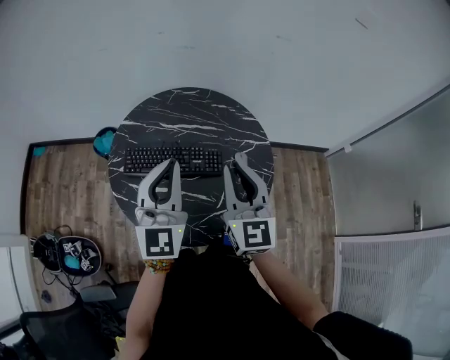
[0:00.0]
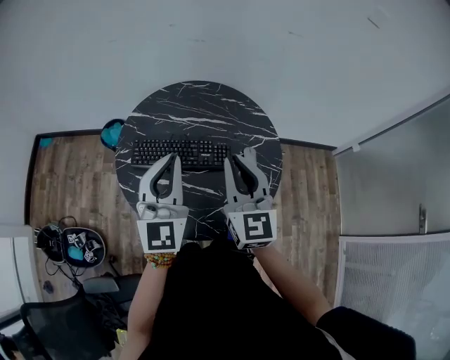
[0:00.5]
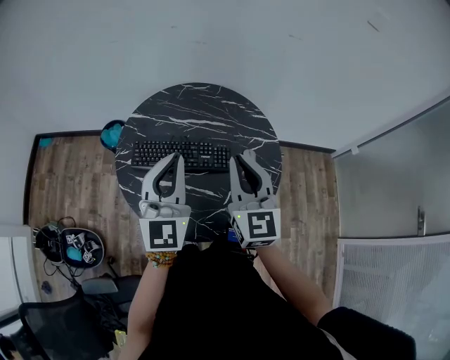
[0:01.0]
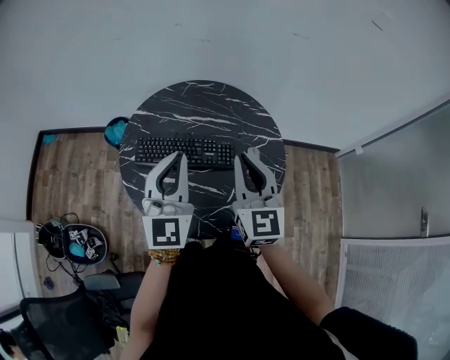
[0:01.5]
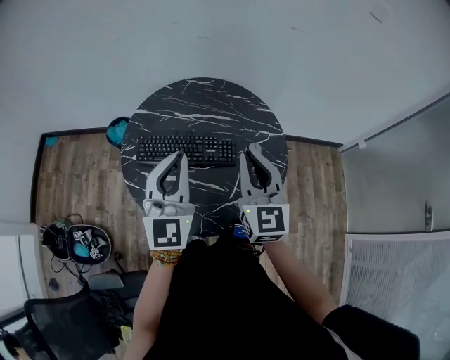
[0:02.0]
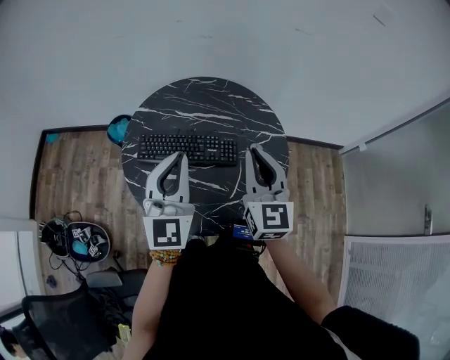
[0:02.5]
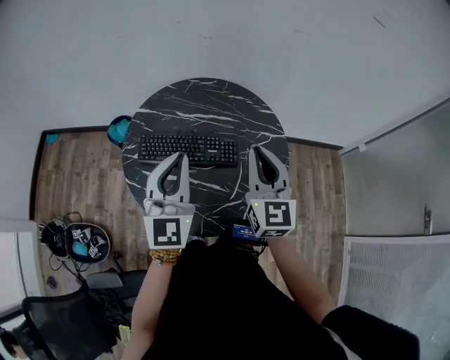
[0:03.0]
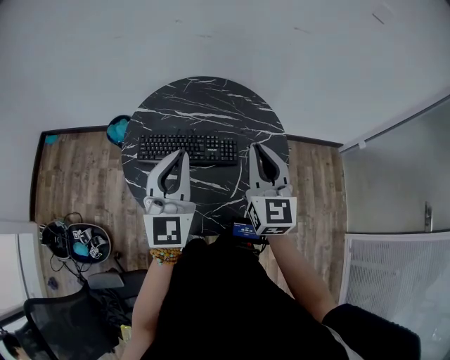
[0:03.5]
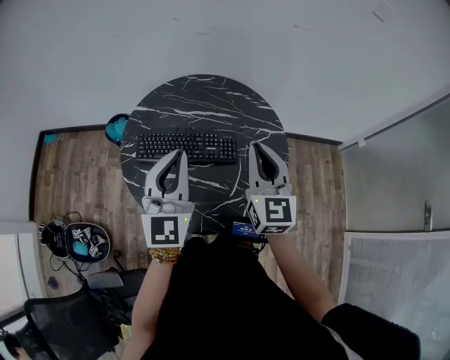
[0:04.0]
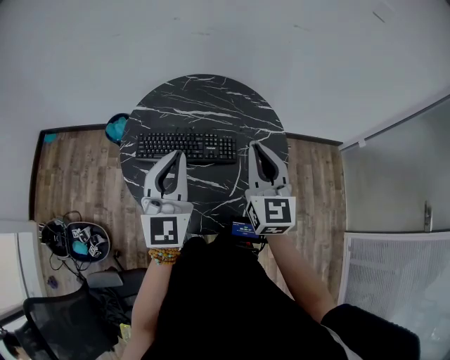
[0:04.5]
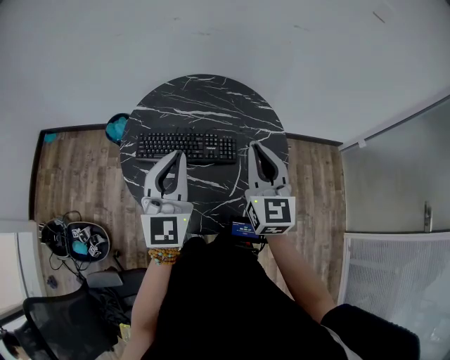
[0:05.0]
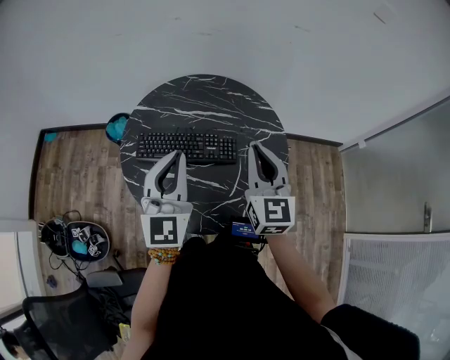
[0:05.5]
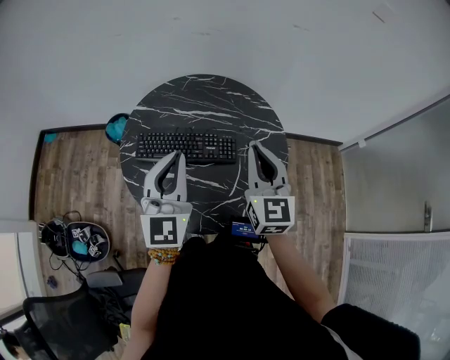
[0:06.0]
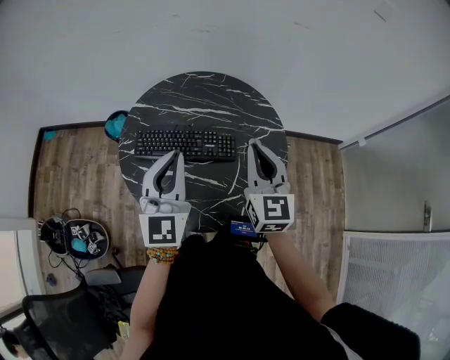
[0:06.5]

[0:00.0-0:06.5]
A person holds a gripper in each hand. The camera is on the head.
0:00.0 to 0:04.5: The grippers make only small movements.
0:04.5 to 0:06.5: Both grippers stay about where they are.

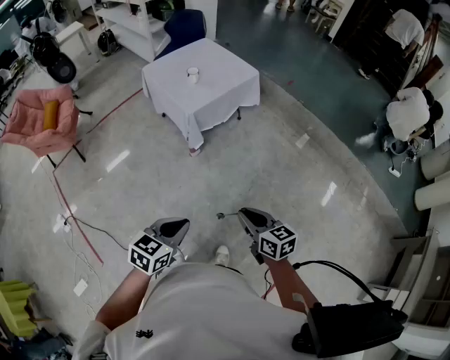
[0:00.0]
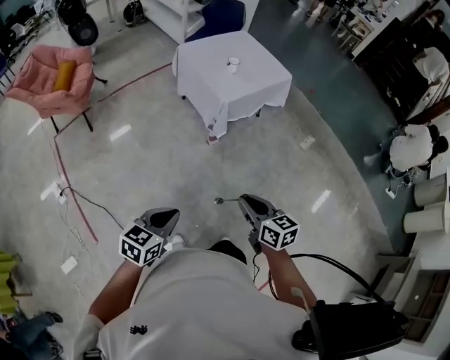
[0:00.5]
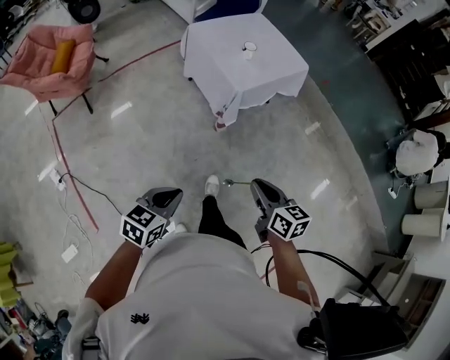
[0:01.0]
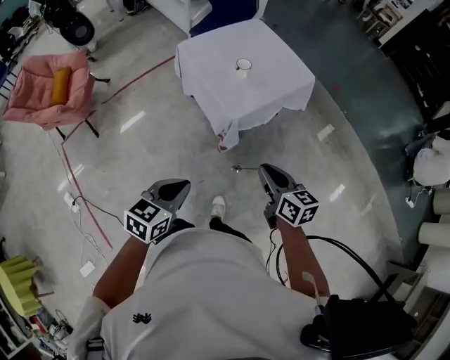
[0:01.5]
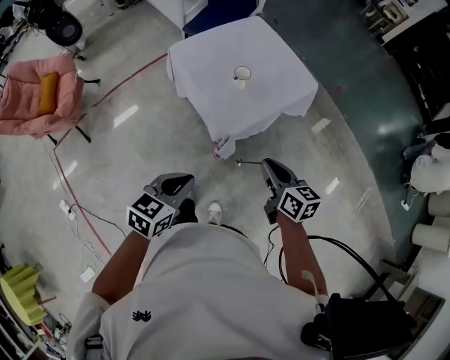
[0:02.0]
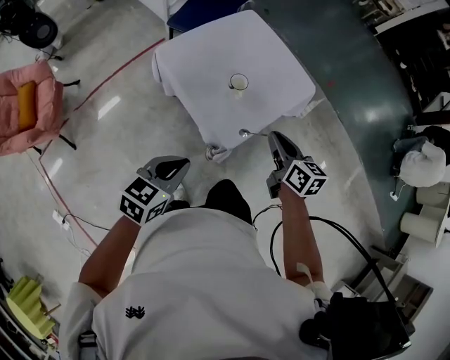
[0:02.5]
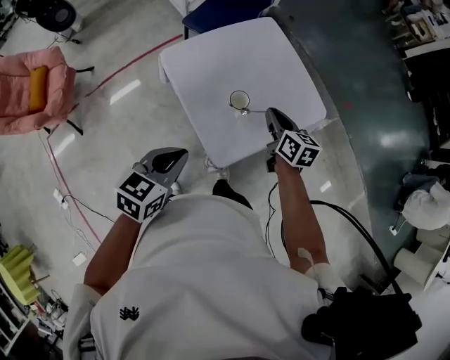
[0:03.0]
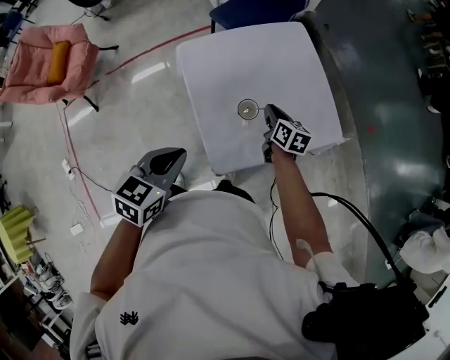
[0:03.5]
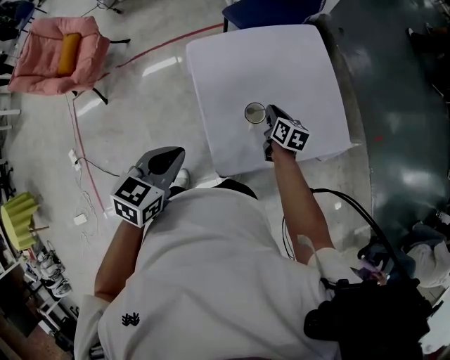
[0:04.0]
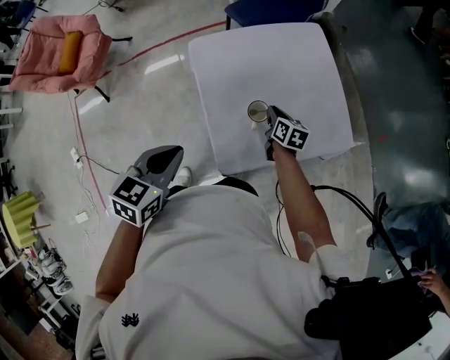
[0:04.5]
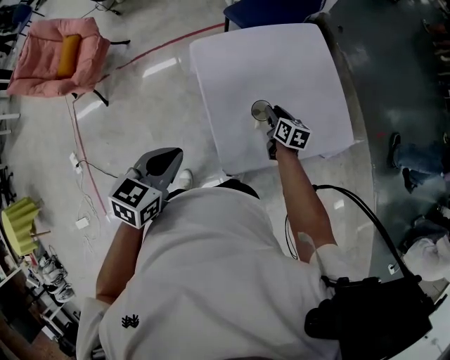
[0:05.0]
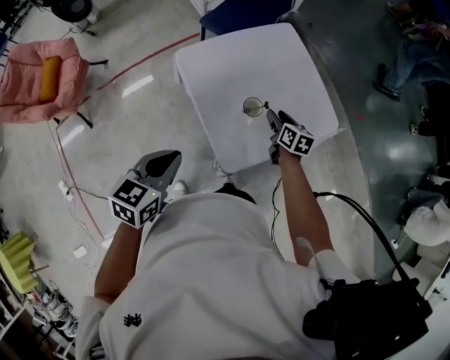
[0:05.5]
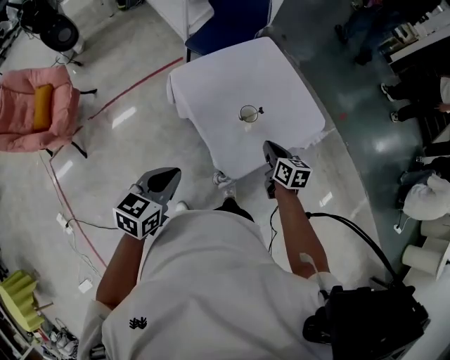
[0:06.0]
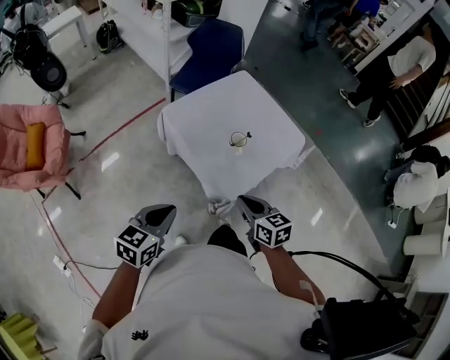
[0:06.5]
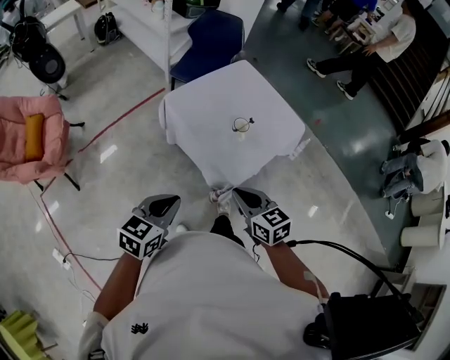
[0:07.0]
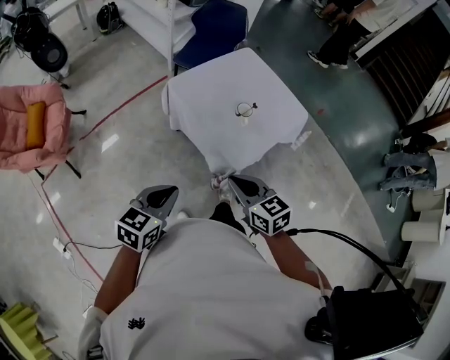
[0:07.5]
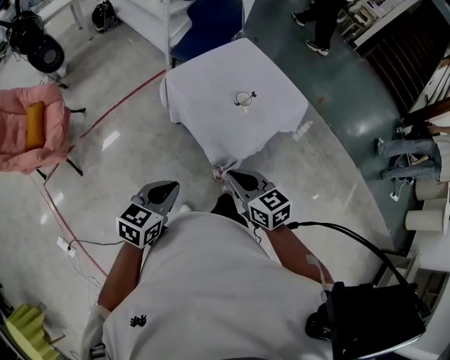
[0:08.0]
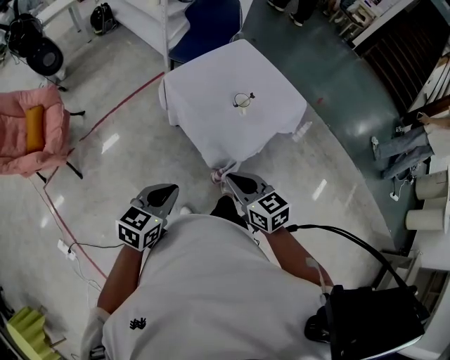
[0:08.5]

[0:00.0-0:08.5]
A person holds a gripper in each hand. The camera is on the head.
0:00.0 to 0:02.0: The pair of grippers is taken forward, about 50 cm.
0:02.0 to 0:04.0: The right gripper ends up about 50 cm from where it was, while the left gripper shifts by some 35 cm, and turns by roughly 30 degrees.
0:04.0 to 0:06.5: The right gripper heads backward, upward and to the left, covering some 40 cm, and opens, then closes once more; the left gripper heads backward and to the left, covering some 25 cm, and changes its angle by some 30 degrees.
0:06.5 to 0:08.5: The left gripper heads backward, covering approximately 10 cm, while the right gripper travels backward and to the left by some 10 cm.

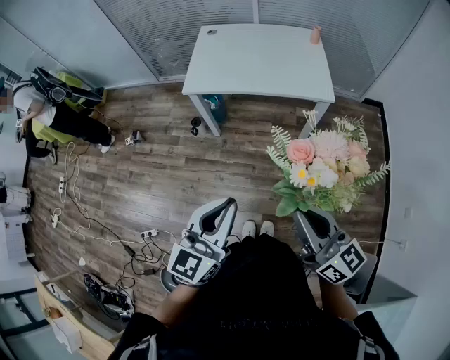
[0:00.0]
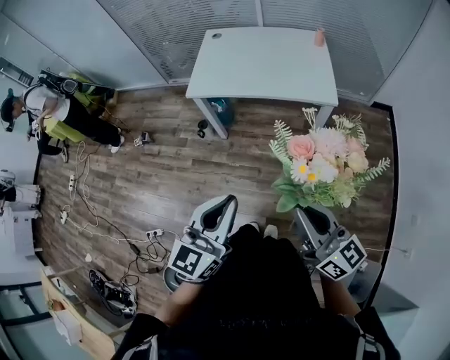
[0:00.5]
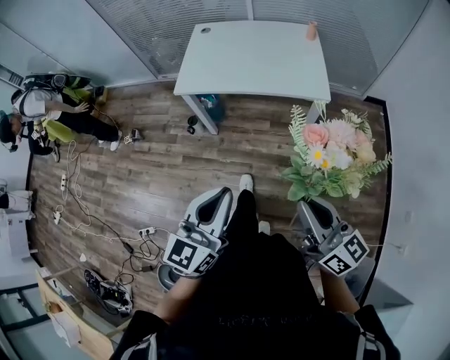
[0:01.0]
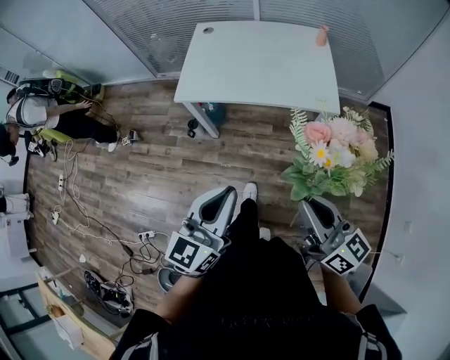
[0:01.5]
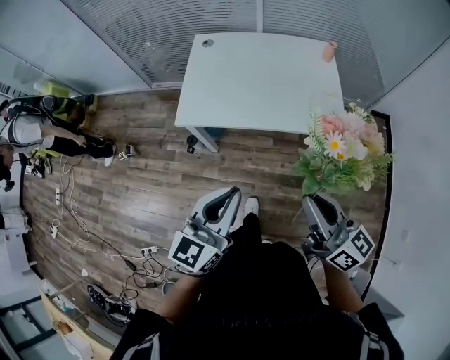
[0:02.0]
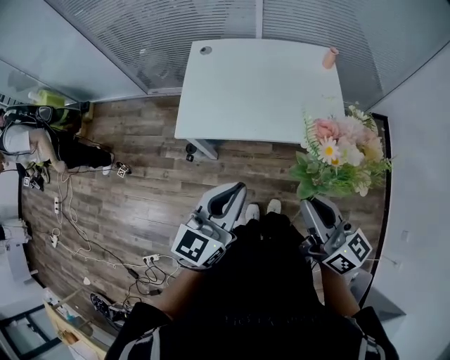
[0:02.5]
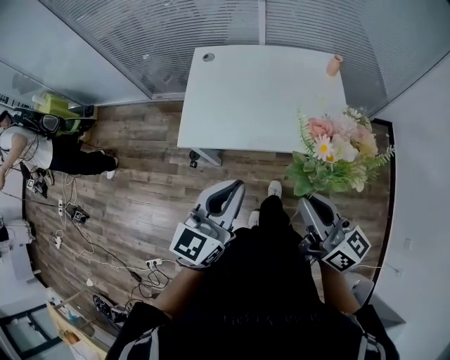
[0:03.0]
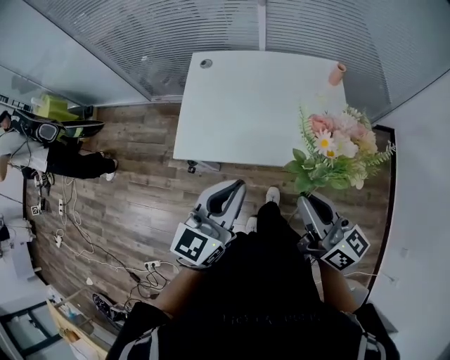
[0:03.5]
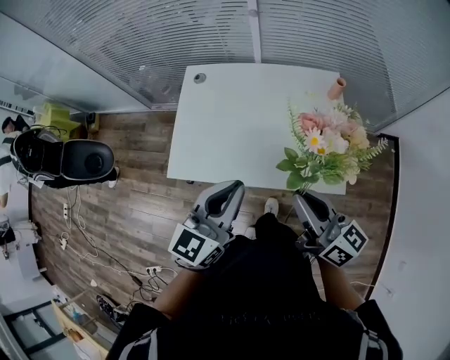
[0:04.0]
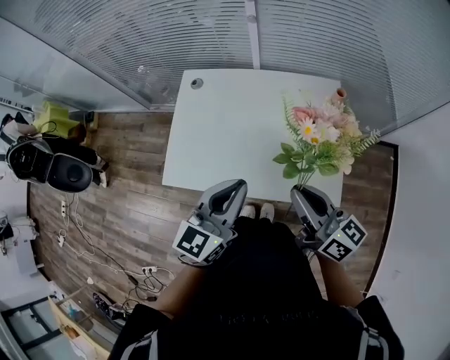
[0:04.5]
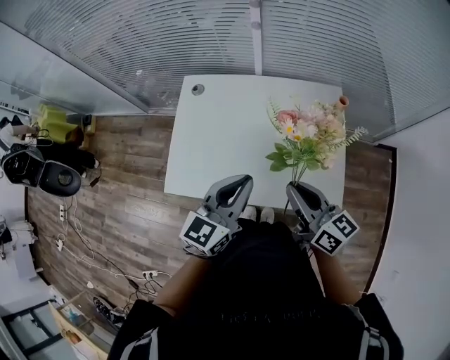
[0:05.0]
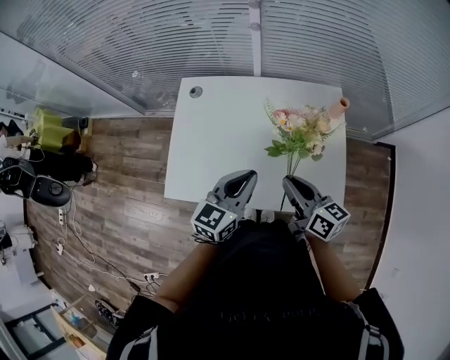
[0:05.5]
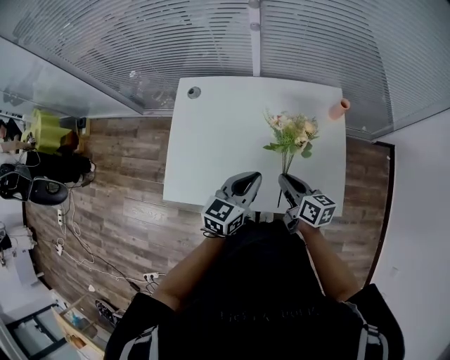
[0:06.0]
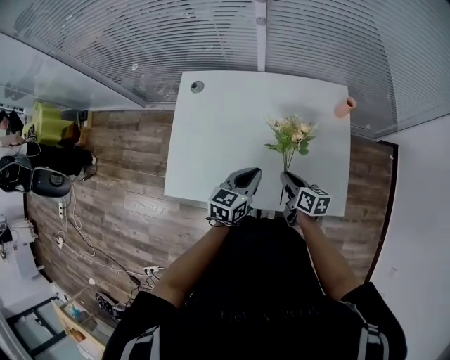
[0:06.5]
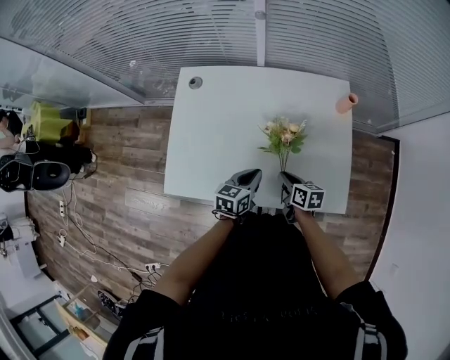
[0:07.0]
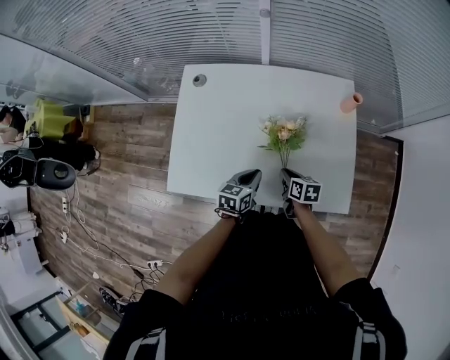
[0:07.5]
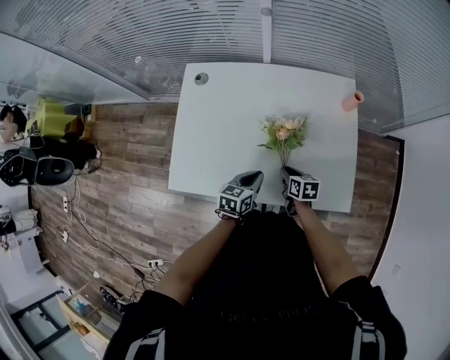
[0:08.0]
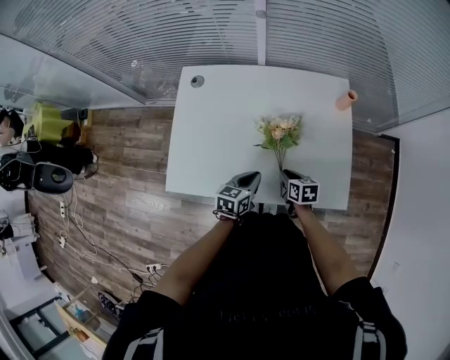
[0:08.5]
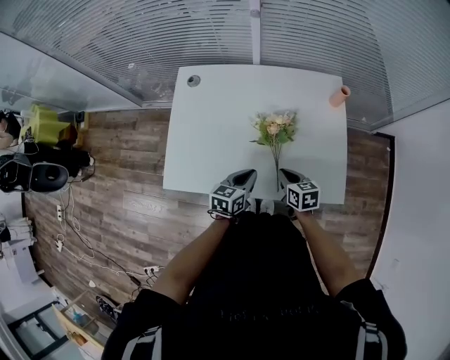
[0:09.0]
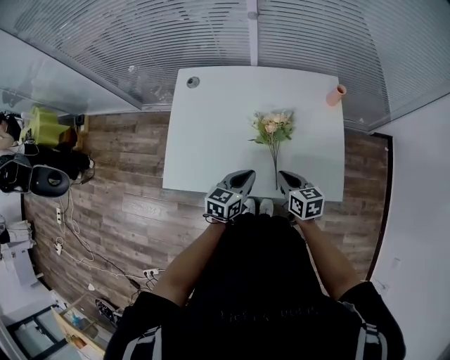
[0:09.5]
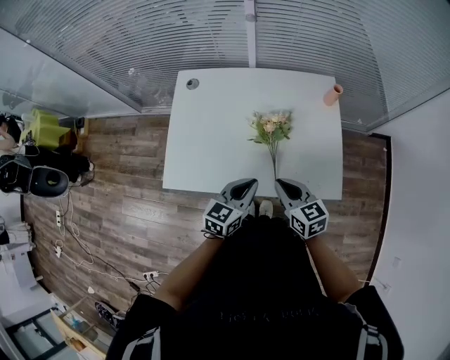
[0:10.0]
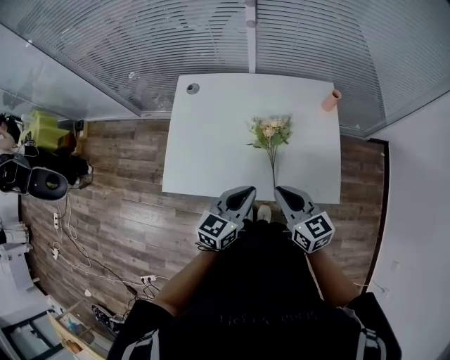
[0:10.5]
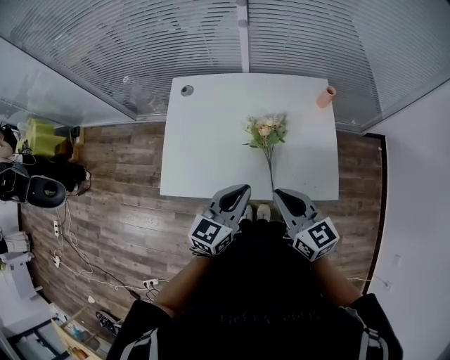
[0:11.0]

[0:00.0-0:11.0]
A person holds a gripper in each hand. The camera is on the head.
0:00.0 to 0:02.0: The two grippers go some 25 cm forward.
0:02.0 to 0:03.5: Both grippers travel together forward, about 15 cm.
0:03.5 to 0:05.5: Both grippers travel together forward and downward, approximately 25 cm.
0:05.5 to 0:07.5: The two grippers go about 20 cm downward. The left gripper turns by some 30 degrees. The right gripper angles its fingers downward, by about 30 degrees.
0:07.5 to 0:09.0: The right gripper goes approximately 5 cm upward.
0:09.0 to 0:11.0: Both grippers travel together upward, about 20 cm. The left gripper turns by some 20 degrees. The right gripper turns by approximately 30 degrees.

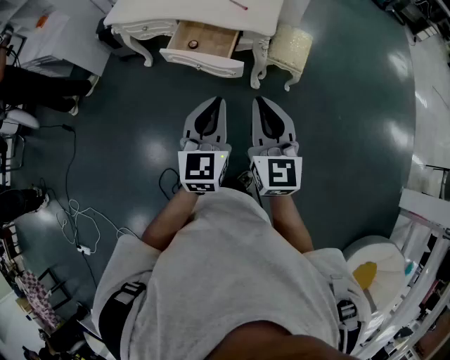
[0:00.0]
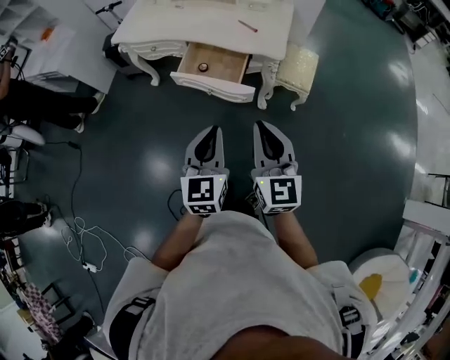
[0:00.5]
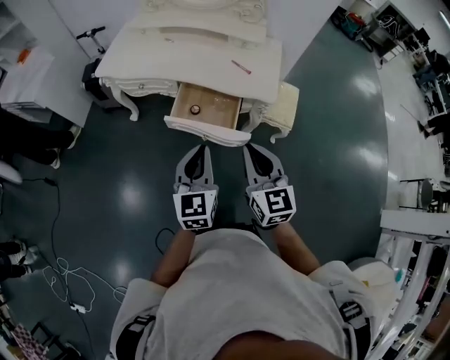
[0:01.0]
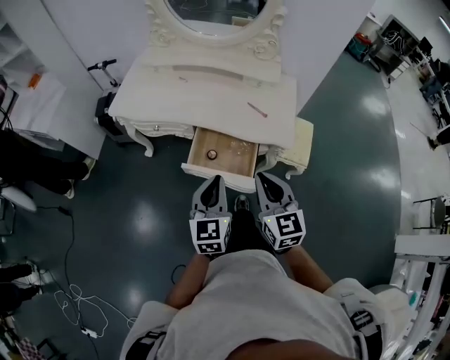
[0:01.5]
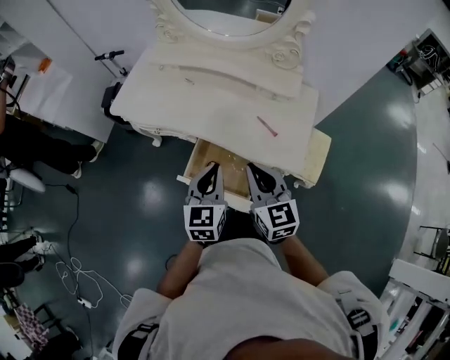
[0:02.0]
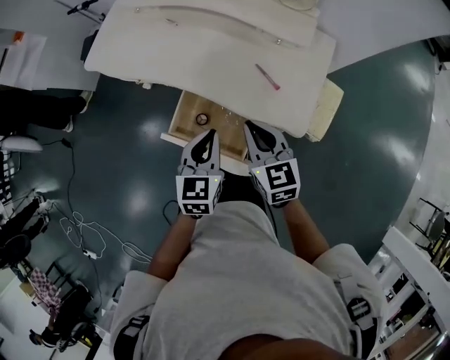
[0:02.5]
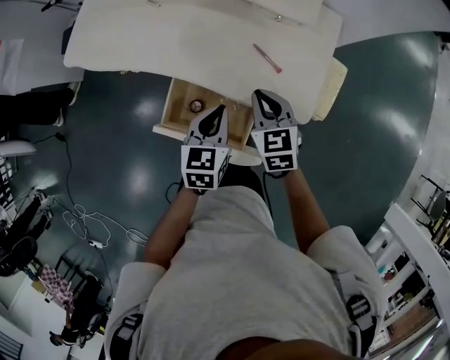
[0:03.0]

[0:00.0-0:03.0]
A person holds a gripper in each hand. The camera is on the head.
0:00.0 to 0:01.5: Both grippers move forward and to the left, about 30 cm.
0:01.5 to 0:03.0: The left gripper shifts approximately 30 cm forward, downward and to the right, and swivels about 30 degrees, while the right gripper moves forward and downward, approximately 35 cm, and rotates roughly 30 degrees.
